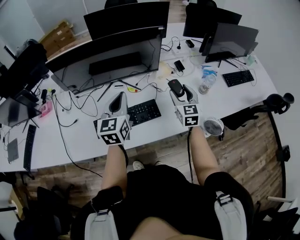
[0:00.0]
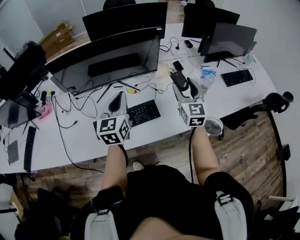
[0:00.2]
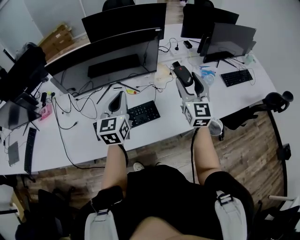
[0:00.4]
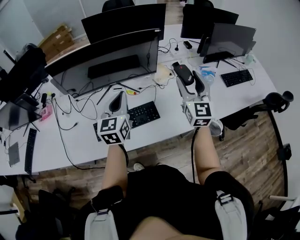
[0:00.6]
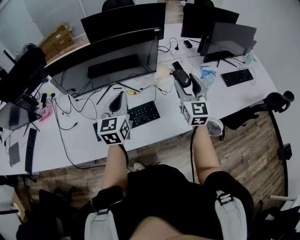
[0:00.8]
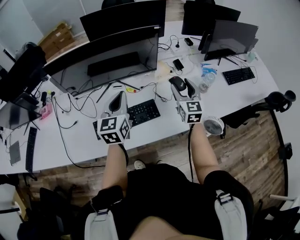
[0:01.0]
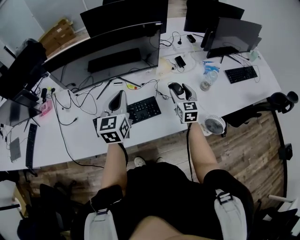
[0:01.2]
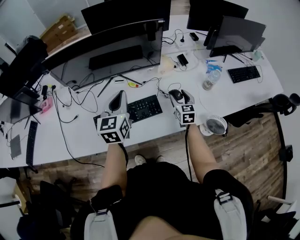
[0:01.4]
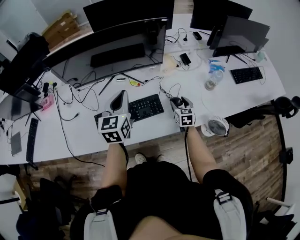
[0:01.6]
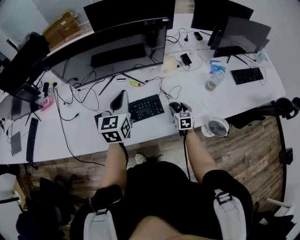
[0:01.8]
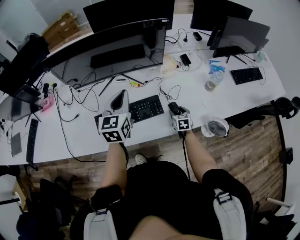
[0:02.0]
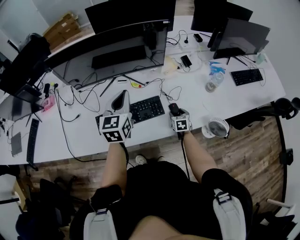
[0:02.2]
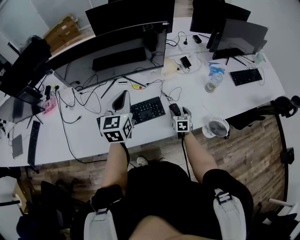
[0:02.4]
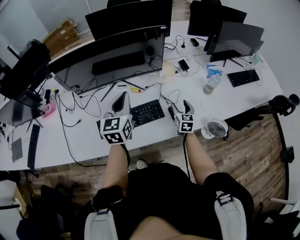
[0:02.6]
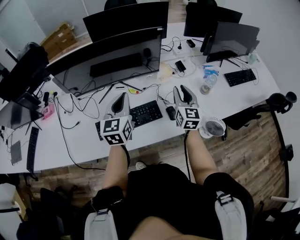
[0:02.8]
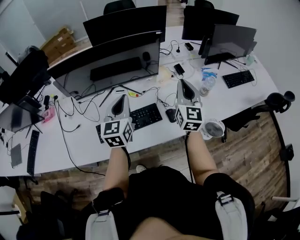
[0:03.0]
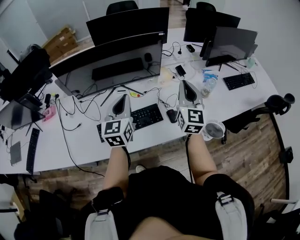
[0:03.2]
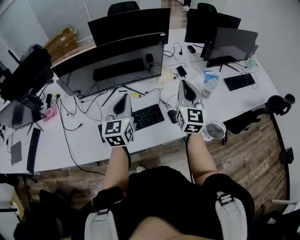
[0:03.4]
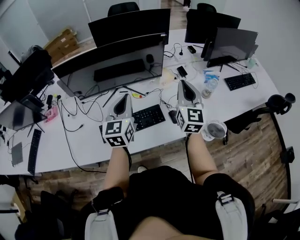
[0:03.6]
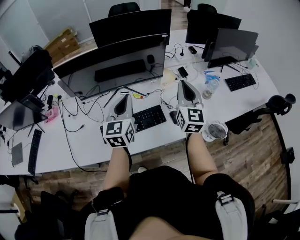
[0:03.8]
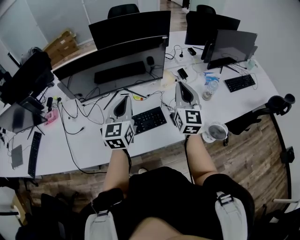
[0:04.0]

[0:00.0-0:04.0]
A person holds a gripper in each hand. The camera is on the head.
0:00.0 to 0:01.4: The right gripper is displaced downward by roughly 10 cm.
0:01.4 to 0:02.6: The right gripper goes downward and returns, about 15 cm each way.
0:02.6 to 0:04.0: The right gripper heads upward, covering roughly 30 cm, turns by some 30 degrees, and closes its fingers.

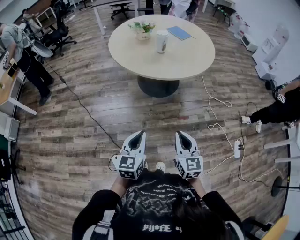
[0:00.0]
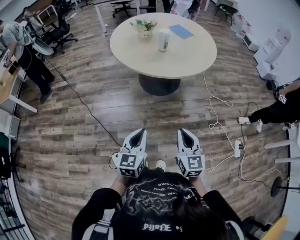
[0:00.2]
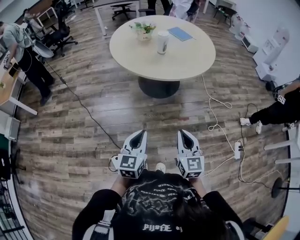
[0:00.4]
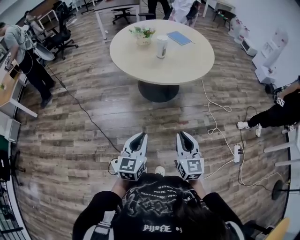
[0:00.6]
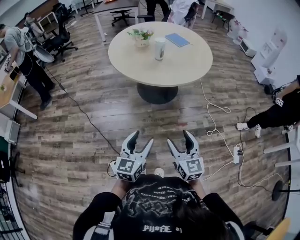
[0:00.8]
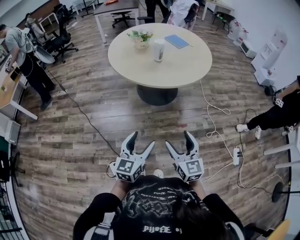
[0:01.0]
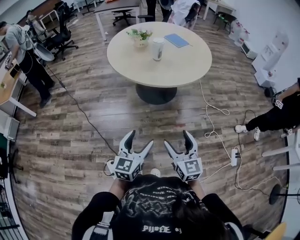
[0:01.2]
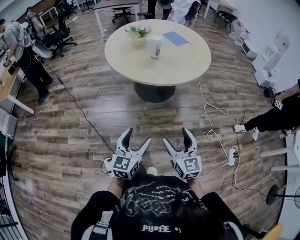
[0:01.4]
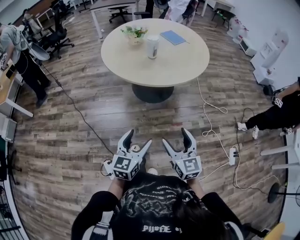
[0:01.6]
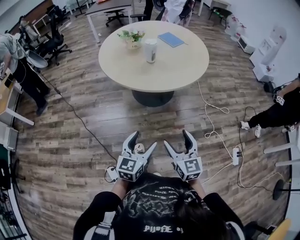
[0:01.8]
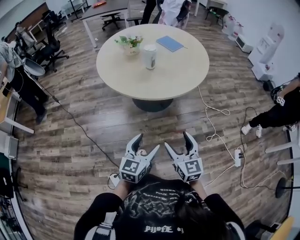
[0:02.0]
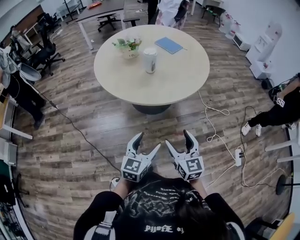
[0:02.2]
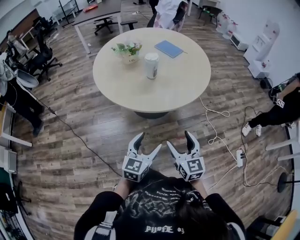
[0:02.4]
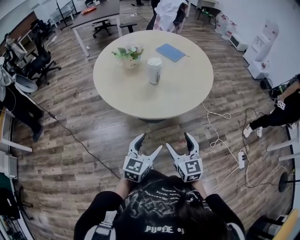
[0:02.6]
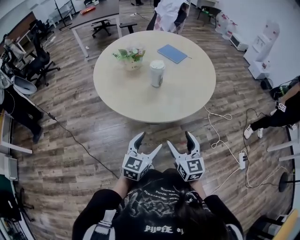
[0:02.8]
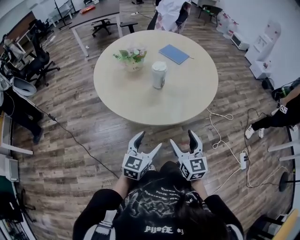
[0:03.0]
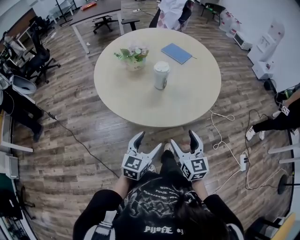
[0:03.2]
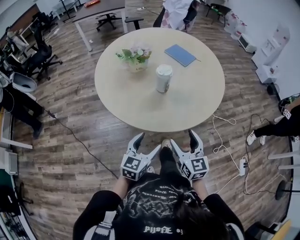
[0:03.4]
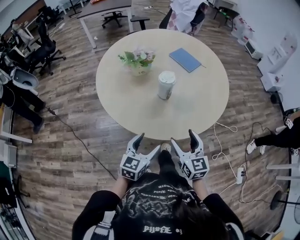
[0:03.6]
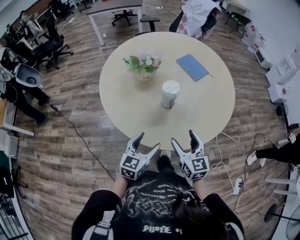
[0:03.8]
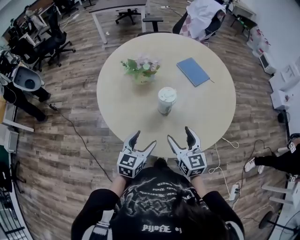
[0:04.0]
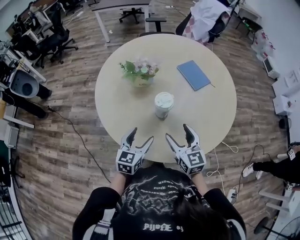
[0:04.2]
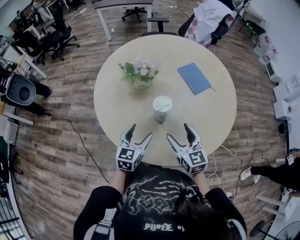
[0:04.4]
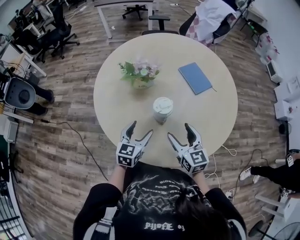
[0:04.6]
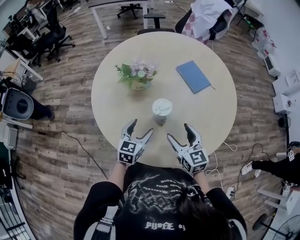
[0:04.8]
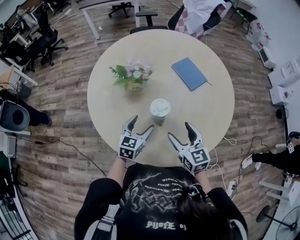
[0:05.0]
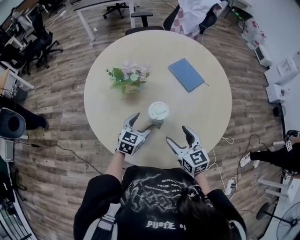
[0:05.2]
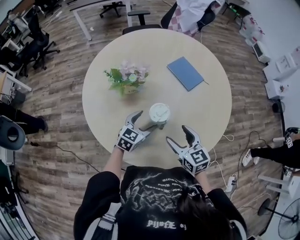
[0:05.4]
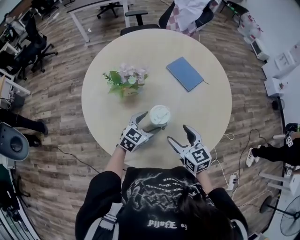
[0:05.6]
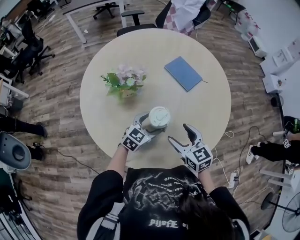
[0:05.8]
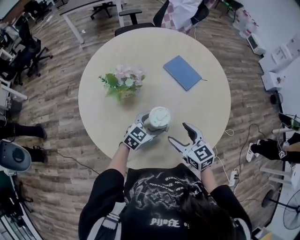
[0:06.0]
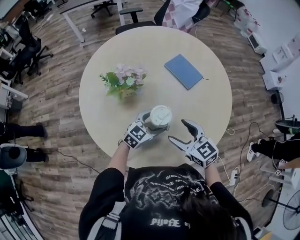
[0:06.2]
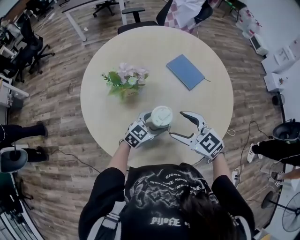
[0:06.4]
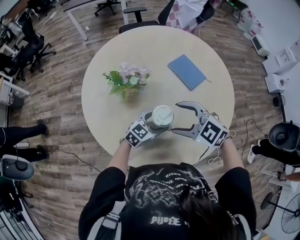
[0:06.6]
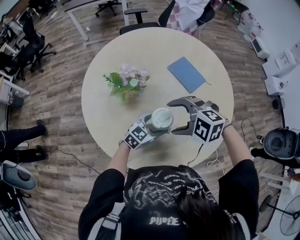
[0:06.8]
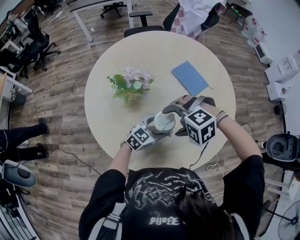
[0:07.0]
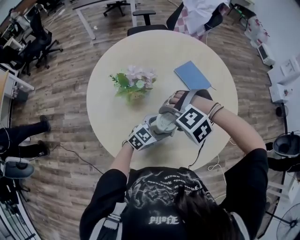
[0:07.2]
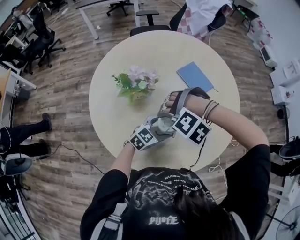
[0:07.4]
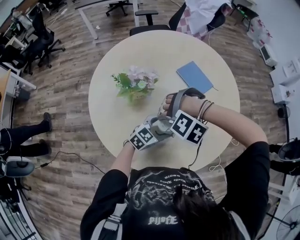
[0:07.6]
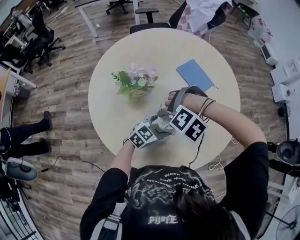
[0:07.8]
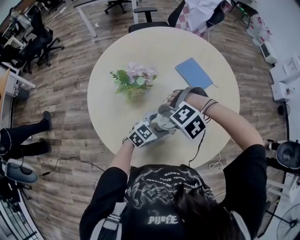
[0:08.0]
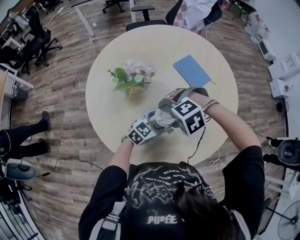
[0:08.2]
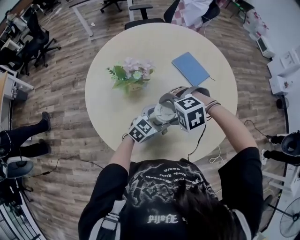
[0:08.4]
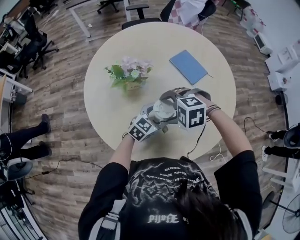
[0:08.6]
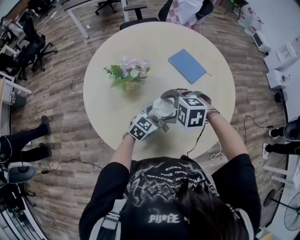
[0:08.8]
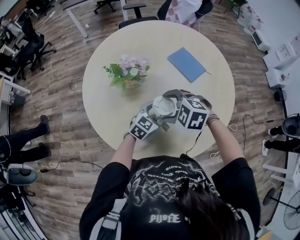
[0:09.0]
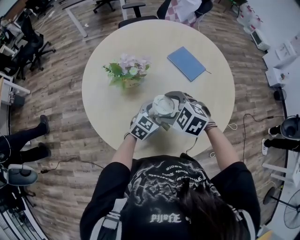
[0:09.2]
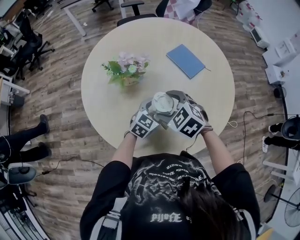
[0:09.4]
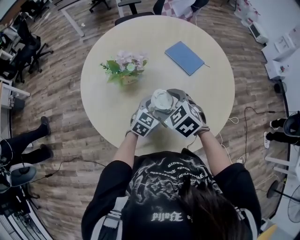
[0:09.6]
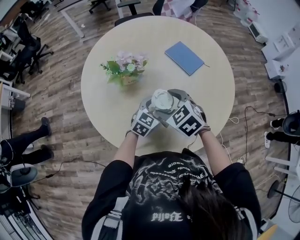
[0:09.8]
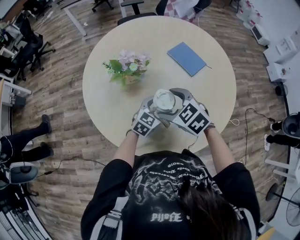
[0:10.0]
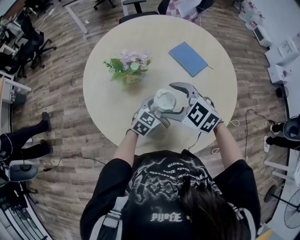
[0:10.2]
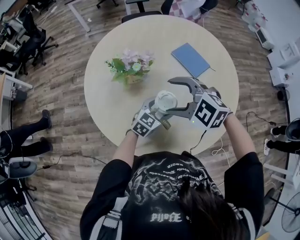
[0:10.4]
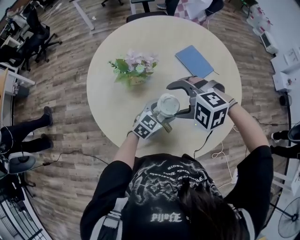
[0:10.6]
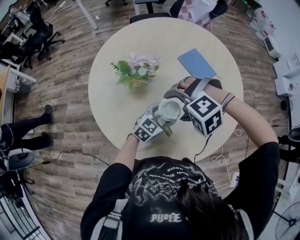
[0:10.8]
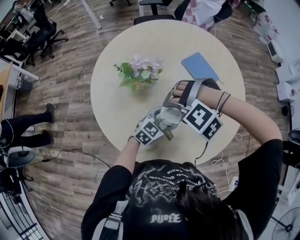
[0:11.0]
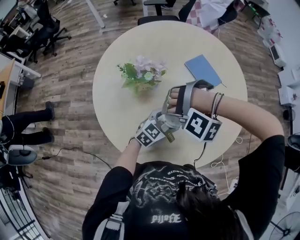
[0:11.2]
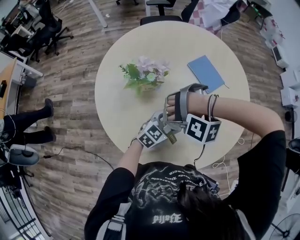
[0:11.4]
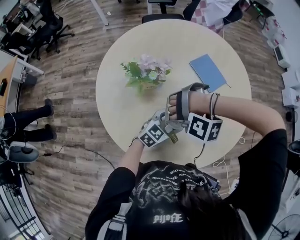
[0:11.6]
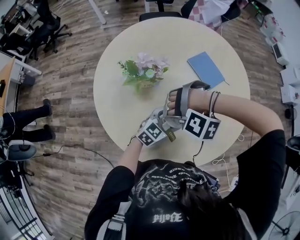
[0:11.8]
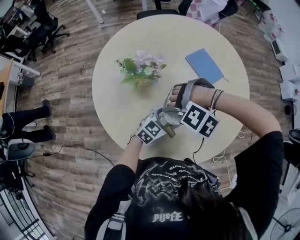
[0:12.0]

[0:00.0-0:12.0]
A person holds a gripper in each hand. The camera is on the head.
0:00.0 to 0:01.6: The right gripper shifts by approximately 5 cm, and opens up. Meanwhile the left gripper shifts roughly 5 cm to the right, and opens up.
0:01.6 to 0:03.0: The left gripper goes roughly 30 cm forward. The right gripper travels forward and to the left by some 30 cm.
0:03.0 to 0:04.4: Both grippers move forward, some 30 cm. The left gripper rotates roughly 20 degrees, while the right gripper swivels some 30 degrees.
0:04.4 to 0:06.0: The right gripper changes place by roughly 5 cm, while the left gripper travels forward, to the right and downward by about 15 cm, and changes its angle by about 40 degrees.
0:06.0 to 0:07.6: The right gripper changes place by approximately 10 cm, and rotates around the line of its fingers by approximately 110 degrees, counterclockwise from behind.
0:07.6 to 0:09.0: The right gripper rolls clockwise, seen from behind, by approximately 70 degrees.
0:09.0 to 0:10.4: The right gripper heads upward, covering some 5 cm.
0:10.4 to 0:12.0: The right gripper travels downward by some 10 cm, and rotates around the line of its fingers by some 60 degrees, counterclockwise from behind.

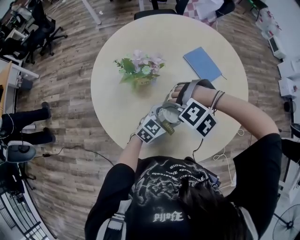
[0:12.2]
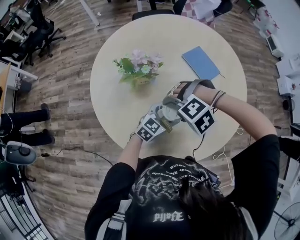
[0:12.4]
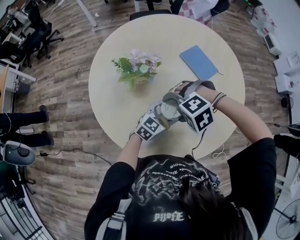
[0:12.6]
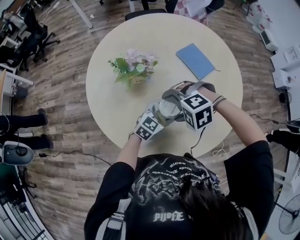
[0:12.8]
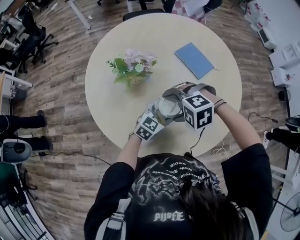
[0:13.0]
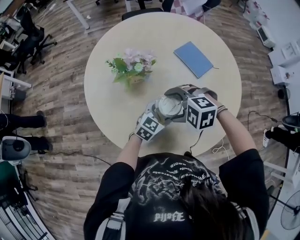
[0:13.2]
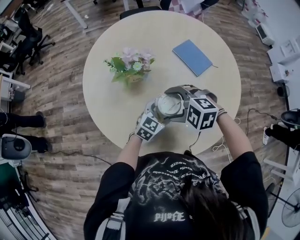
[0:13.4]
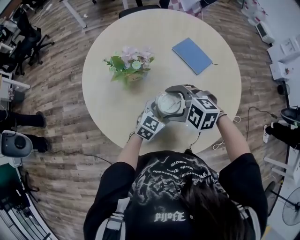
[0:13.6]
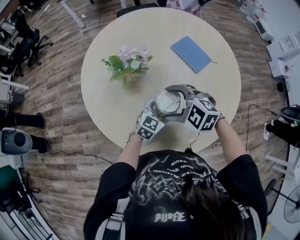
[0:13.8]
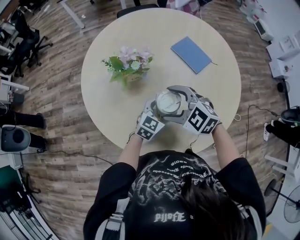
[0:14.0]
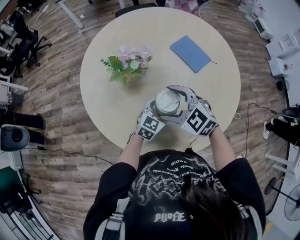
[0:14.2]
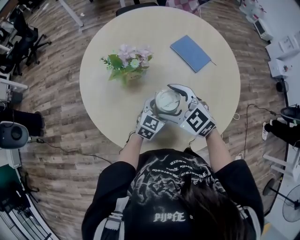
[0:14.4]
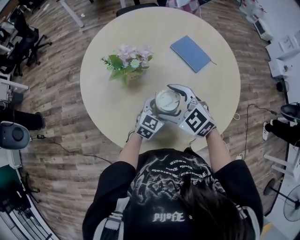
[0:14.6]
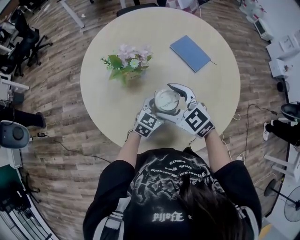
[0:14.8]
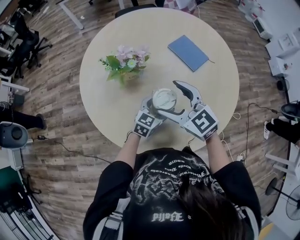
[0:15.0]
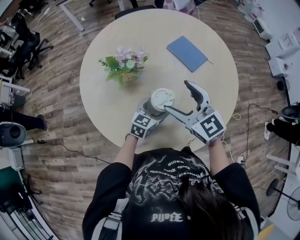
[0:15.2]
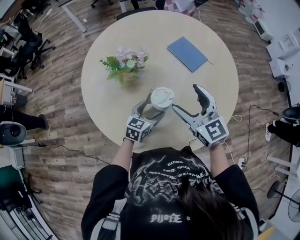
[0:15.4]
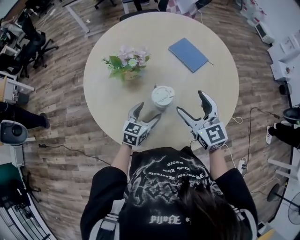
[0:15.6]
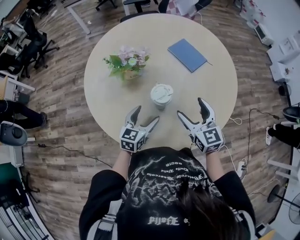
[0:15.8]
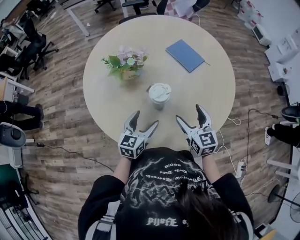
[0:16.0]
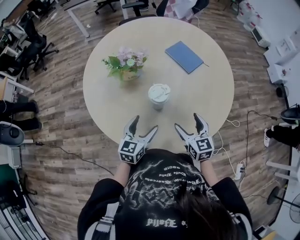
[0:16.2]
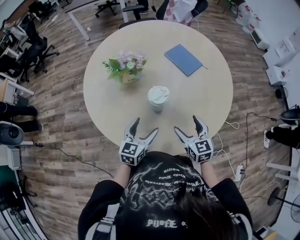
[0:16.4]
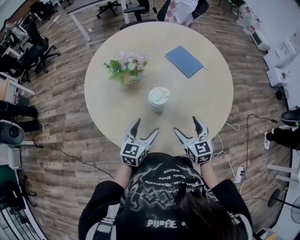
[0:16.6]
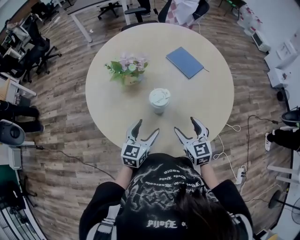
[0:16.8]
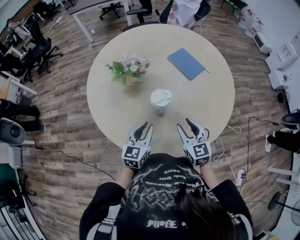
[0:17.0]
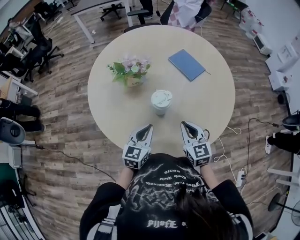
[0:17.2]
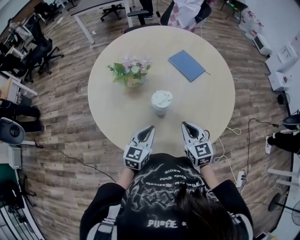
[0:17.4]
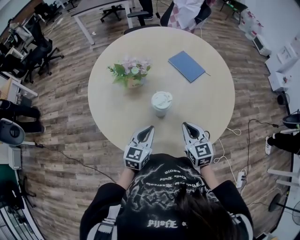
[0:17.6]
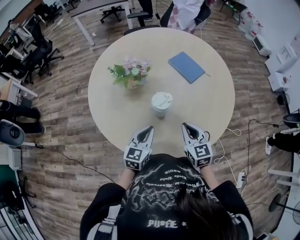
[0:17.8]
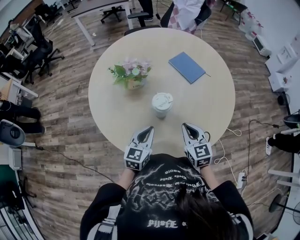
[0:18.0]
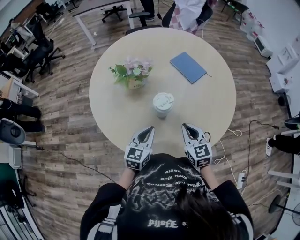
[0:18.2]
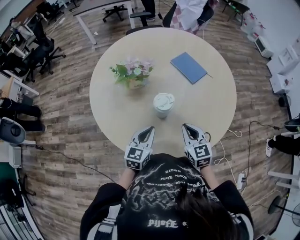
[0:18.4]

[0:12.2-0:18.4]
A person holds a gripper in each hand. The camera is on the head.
0:12.2 to 0:13.8: The right gripper rolls clockwise, seen from behind, by some 60 degrees.
0:13.8 to 0:15.4: The left gripper changes place by some 5 cm; the right gripper goes roughly 10 cm to the right and upward, and tips its fingers upward by some 30 degrees.
0:15.4 to 0:16.8: The right gripper goes roughly 15 cm downward and backward. Meanwhile the left gripper shifts about 10 cm backward and upward.
0:16.8 to 0:18.4: The left gripper closes, while the right gripper closes its fingers.

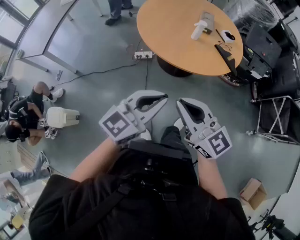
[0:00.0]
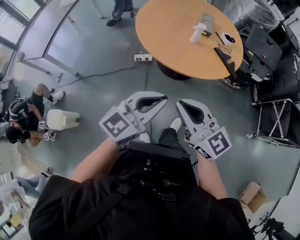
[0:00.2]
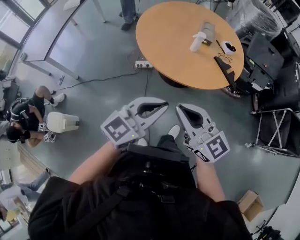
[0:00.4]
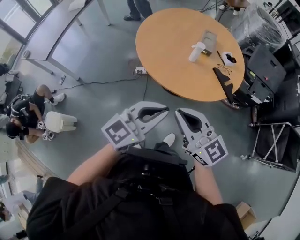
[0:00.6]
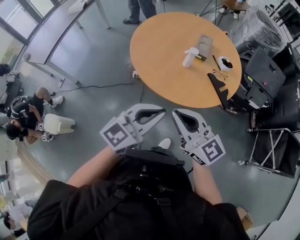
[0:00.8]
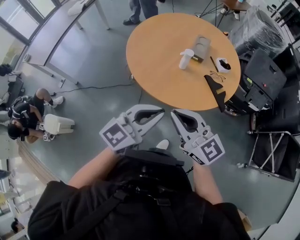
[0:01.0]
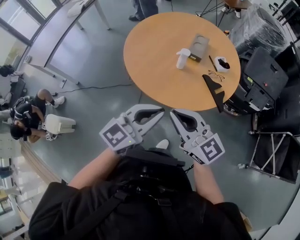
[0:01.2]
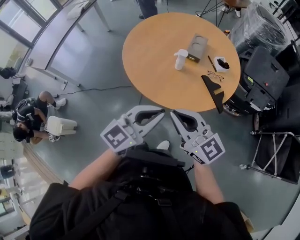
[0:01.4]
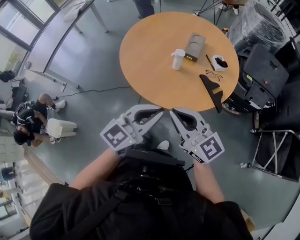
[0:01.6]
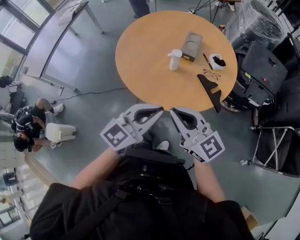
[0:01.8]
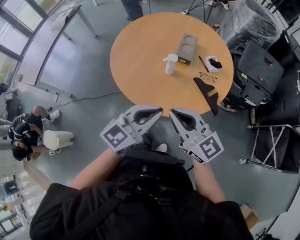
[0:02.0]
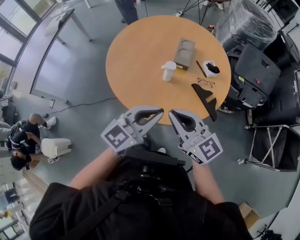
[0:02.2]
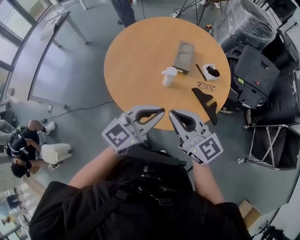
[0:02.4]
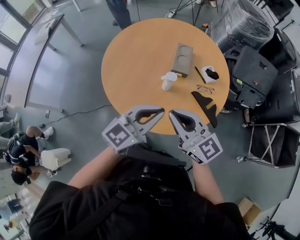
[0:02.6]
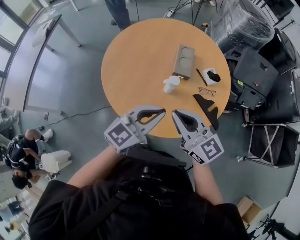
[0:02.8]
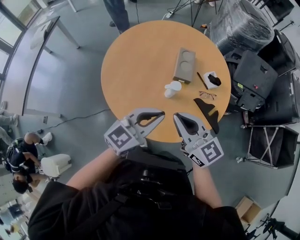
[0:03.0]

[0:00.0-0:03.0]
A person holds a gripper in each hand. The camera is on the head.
0:00.0 to 0:01.6: The two grippers travel together, to the right and forward, approximately 40 cm.
0:01.6 to 0:03.0: Both grippers move forward, approximately 30 cm.
